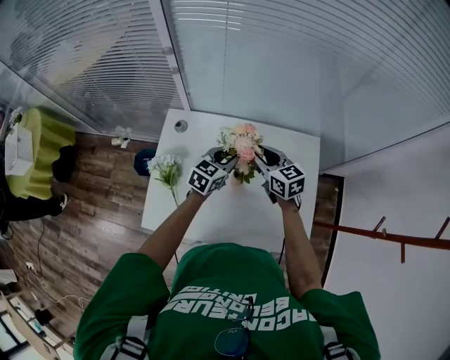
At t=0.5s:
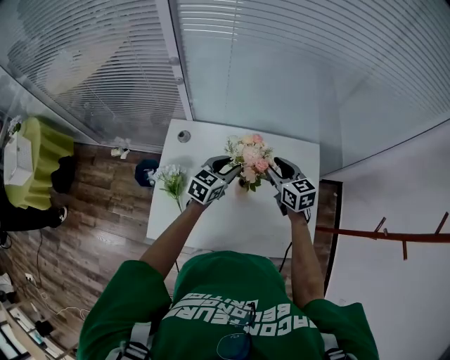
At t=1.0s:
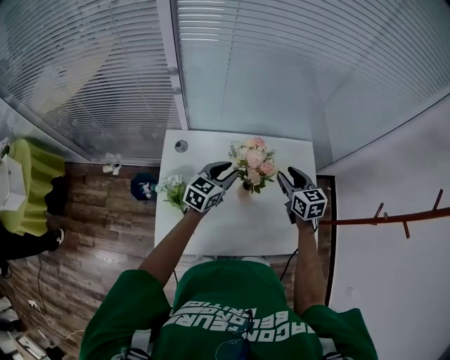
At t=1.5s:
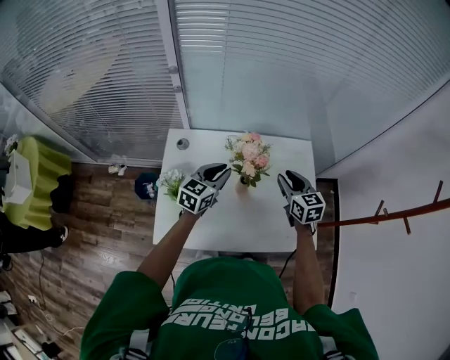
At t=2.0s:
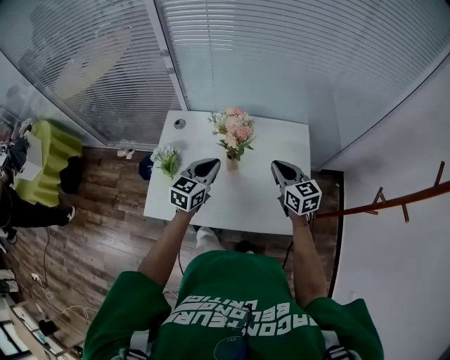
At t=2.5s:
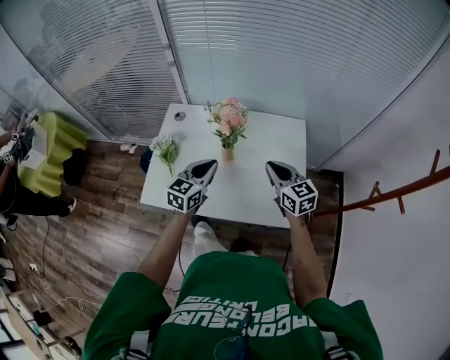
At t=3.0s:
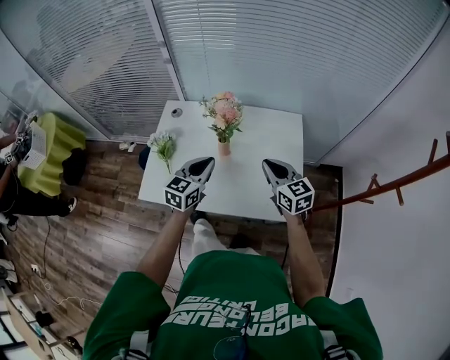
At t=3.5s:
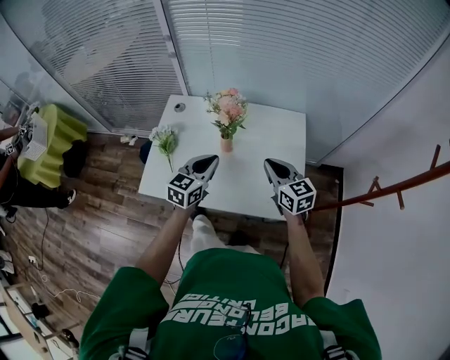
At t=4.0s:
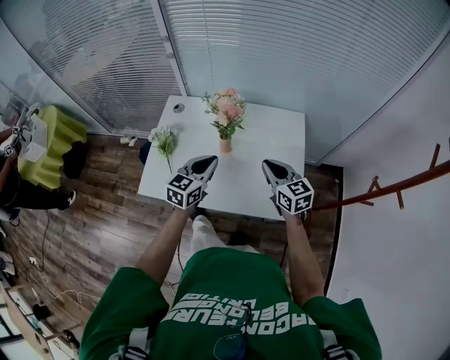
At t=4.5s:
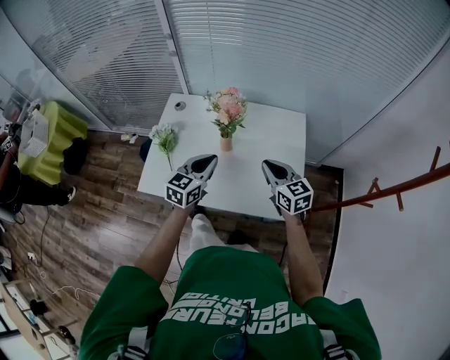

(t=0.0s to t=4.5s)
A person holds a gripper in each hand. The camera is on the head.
t=0.0s - t=2.0s: The right gripper is displaced to the right and backward by some 20 cm, and closes up, while the left gripper shifts about 15 cm backward and upward.
t=2.0s - t=4.5s: The grippers both shift backward by some 10 cm.

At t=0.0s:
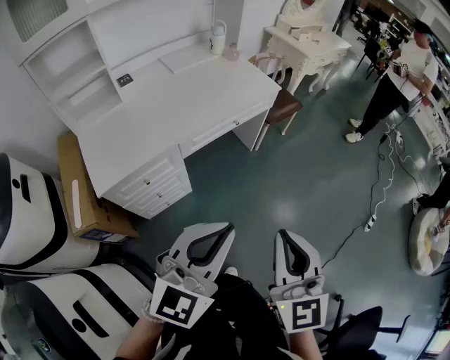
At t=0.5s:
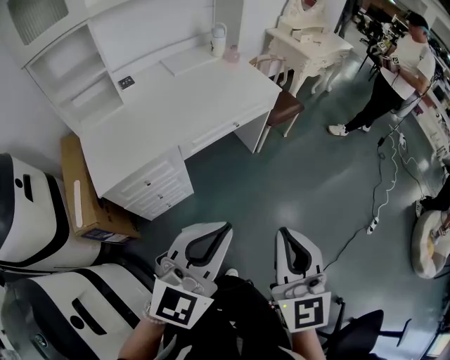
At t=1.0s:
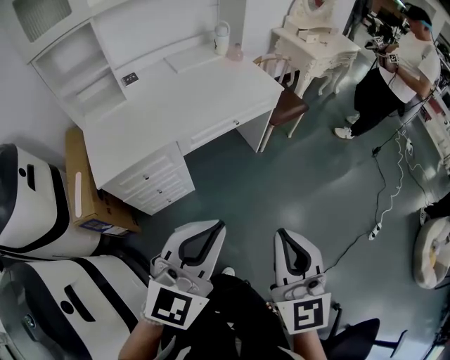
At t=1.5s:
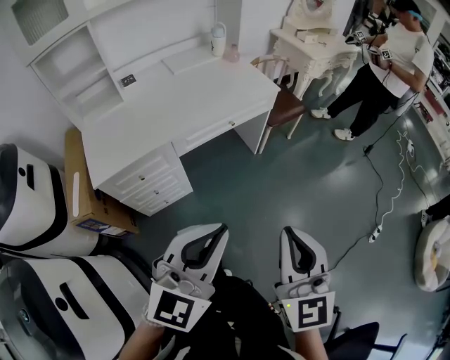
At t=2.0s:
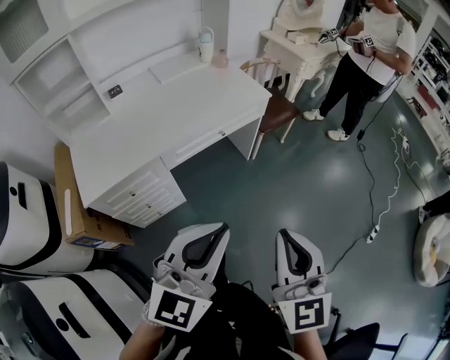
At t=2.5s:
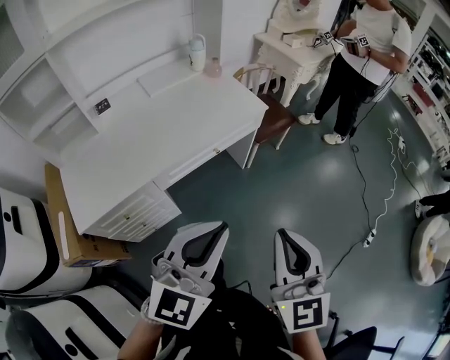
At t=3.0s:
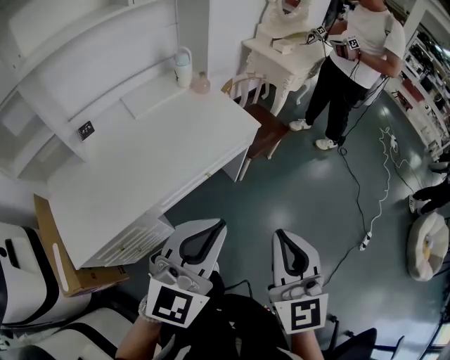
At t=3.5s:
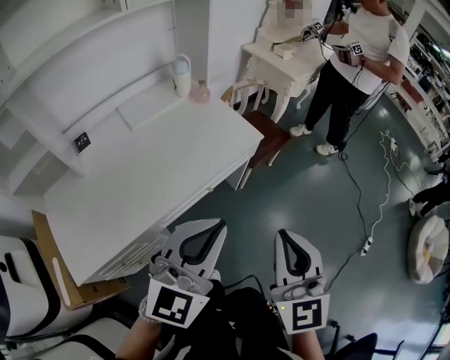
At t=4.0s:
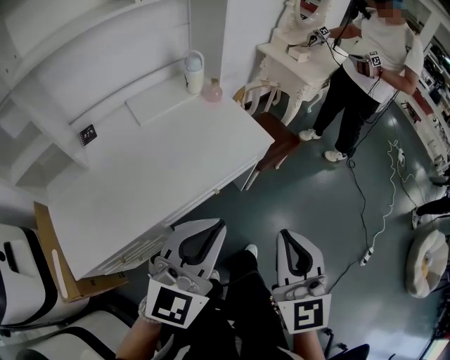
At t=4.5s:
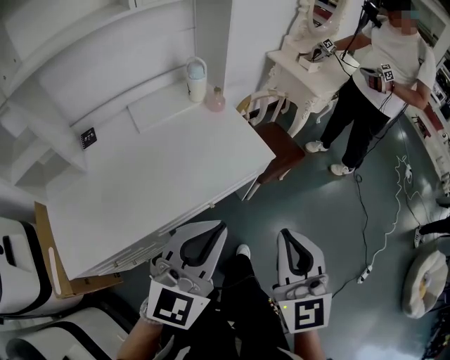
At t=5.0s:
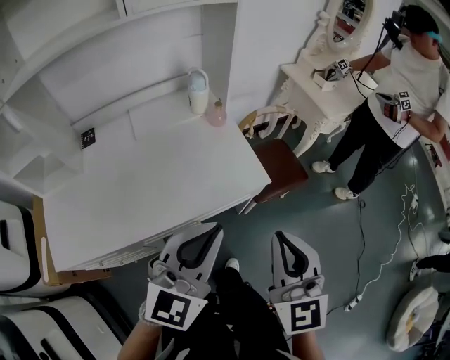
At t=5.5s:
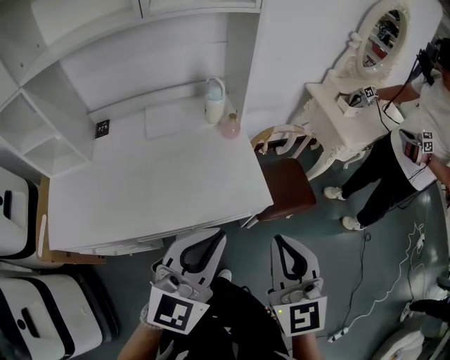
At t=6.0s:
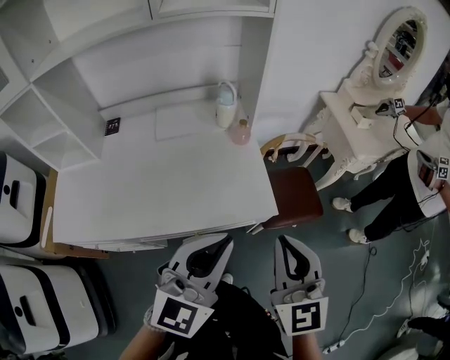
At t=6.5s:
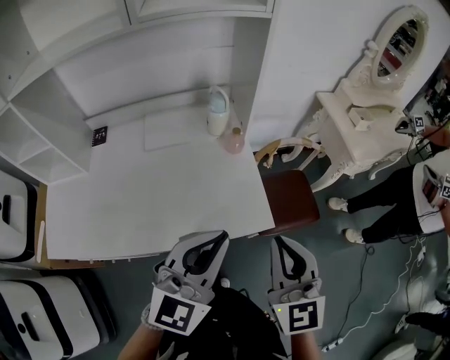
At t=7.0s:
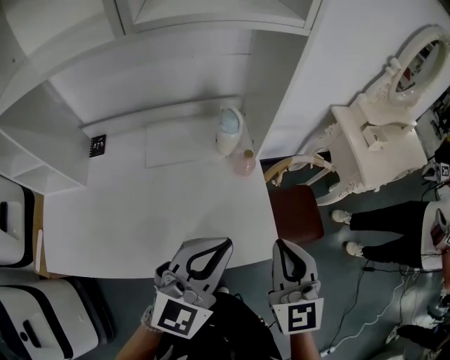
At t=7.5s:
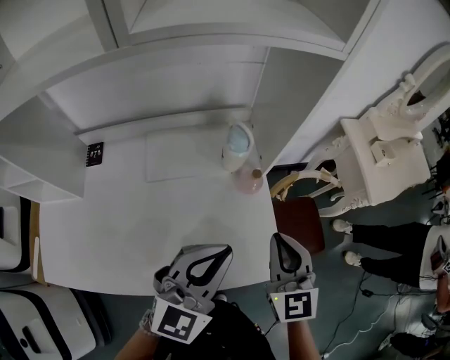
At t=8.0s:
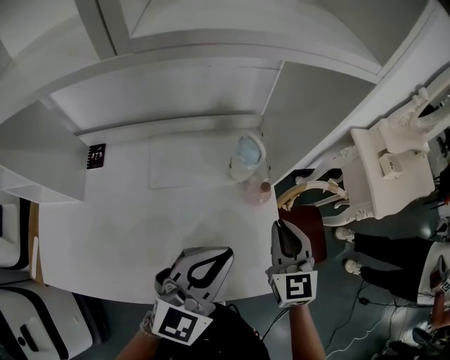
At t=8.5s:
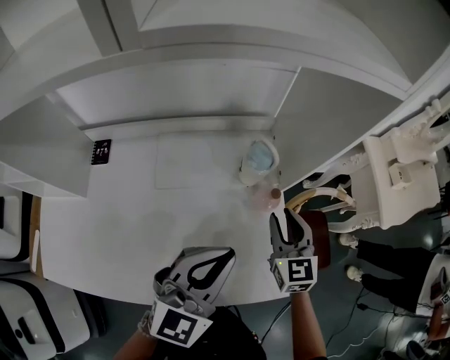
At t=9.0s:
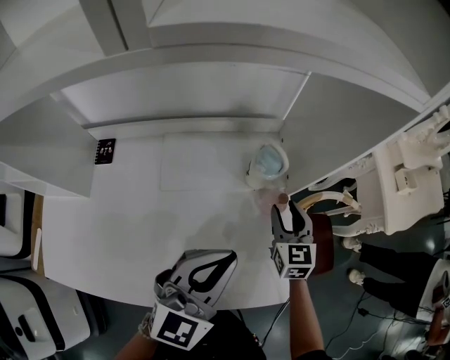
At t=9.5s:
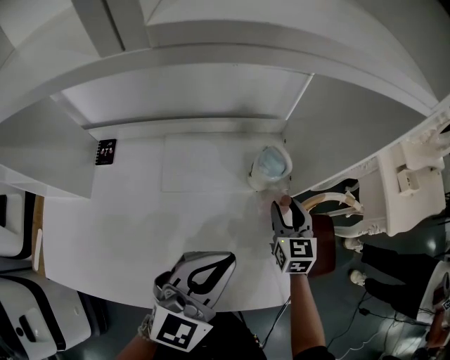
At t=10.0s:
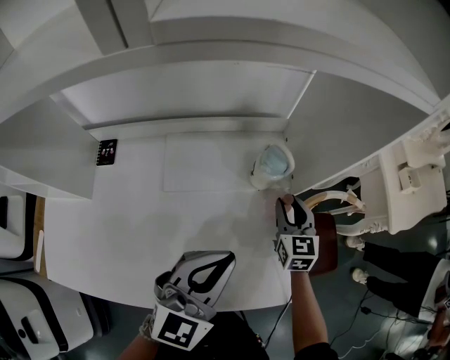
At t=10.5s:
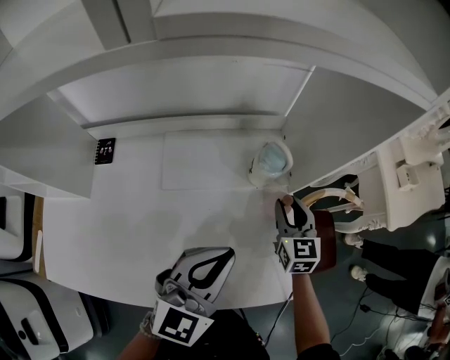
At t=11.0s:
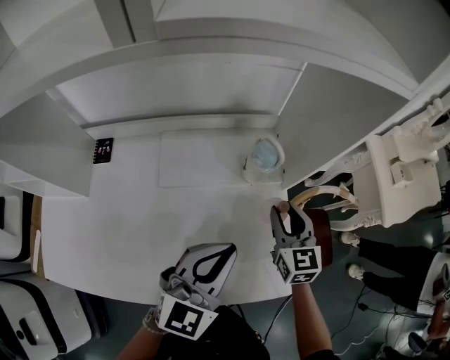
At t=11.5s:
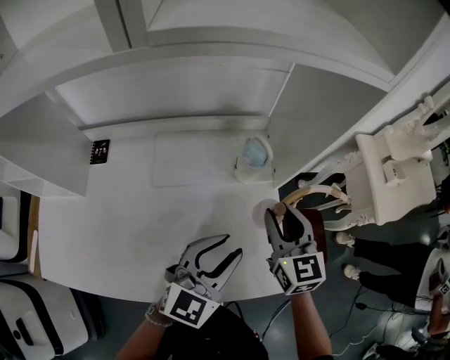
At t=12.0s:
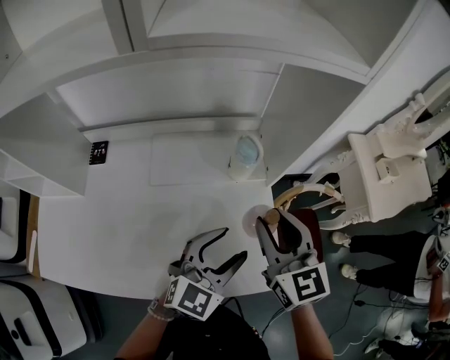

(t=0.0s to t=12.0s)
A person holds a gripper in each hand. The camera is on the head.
t=0.0s - t=2.0s: Both grippers move to the right and forward, approximately 10 cm.
t=2.0s - t=4.0s: The grippers both shift forward by roughly 30 cm.
t=4.0s - t=6.0s: The right gripper ends up some 30 cm from where it was, and rotates about 30 degrees; the left gripper shifts by approximately 25 cm, and rotates approximately 30 degrees.
t=6.0s - t=8.0s: The grippers both shift forward by roughly 30 cm.
t=8.0s - t=10.0s: The right gripper moves forward and downward, about 15 cm, and opens.
t=10.0s - t=12.0s: The left gripper moves to the right, about 5 cm, and opens; the right gripper heads upward and backward, covering roughly 20 cm.

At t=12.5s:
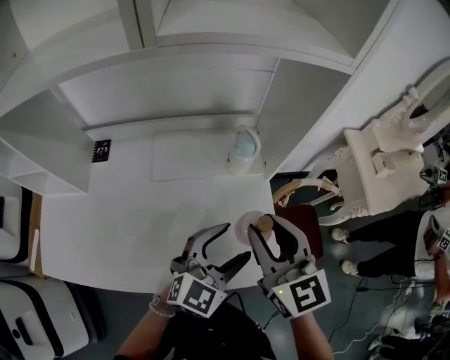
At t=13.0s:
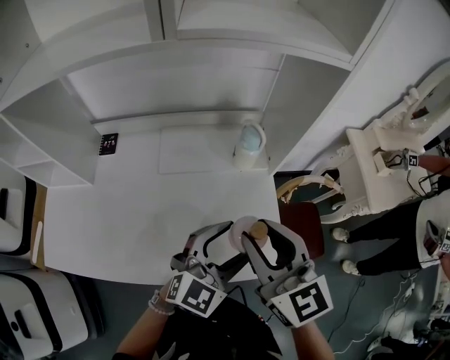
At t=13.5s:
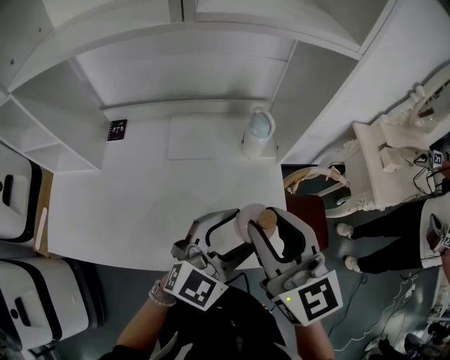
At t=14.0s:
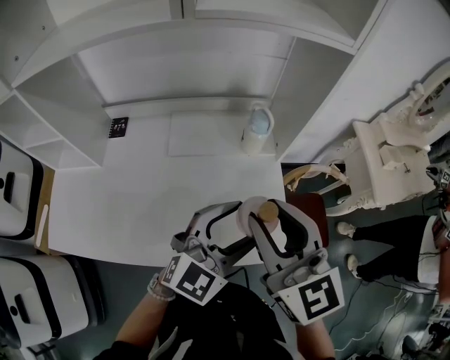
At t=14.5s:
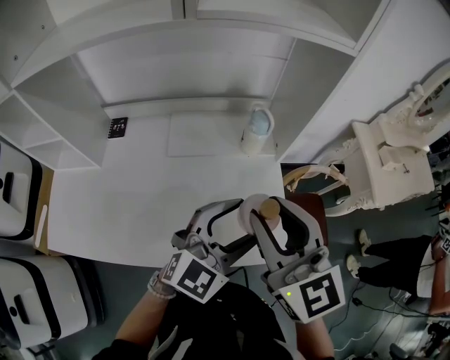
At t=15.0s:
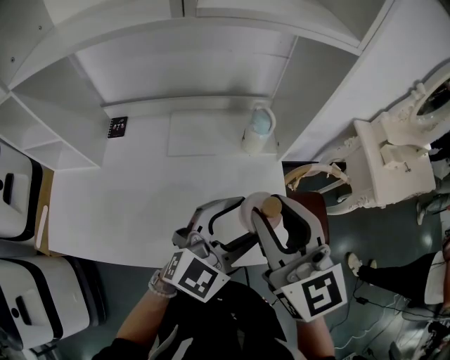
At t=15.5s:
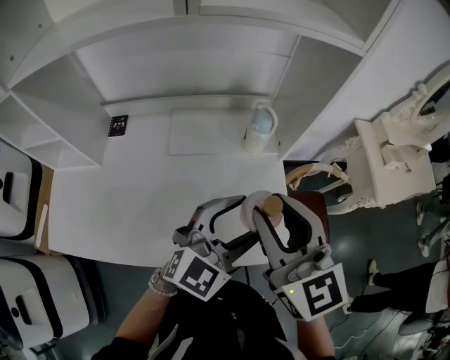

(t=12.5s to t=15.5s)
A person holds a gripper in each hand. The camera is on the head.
t=12.5s - t=14.0s: The left gripper heads upward, covering approximately 5 cm. Meanwhile the right gripper shifts some 10 cm backward and upward.
t=14.0s - t=15.5s: There are only small adjustments of the grippers.

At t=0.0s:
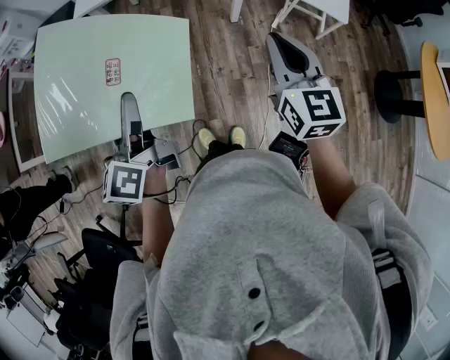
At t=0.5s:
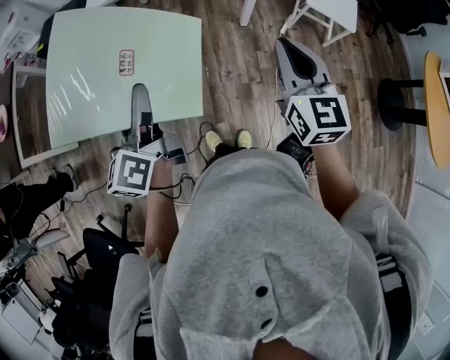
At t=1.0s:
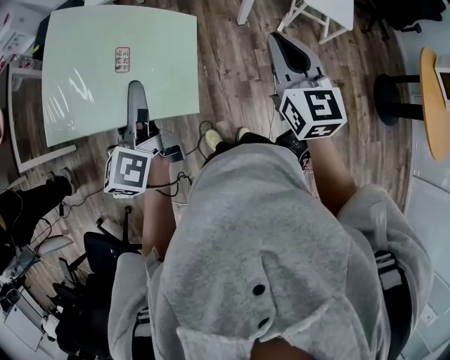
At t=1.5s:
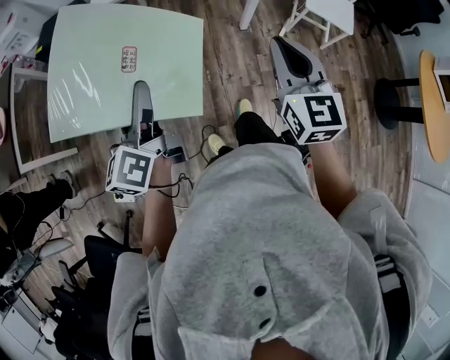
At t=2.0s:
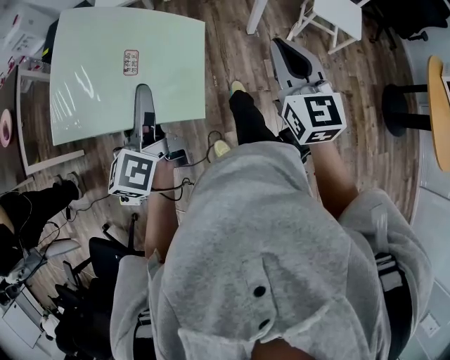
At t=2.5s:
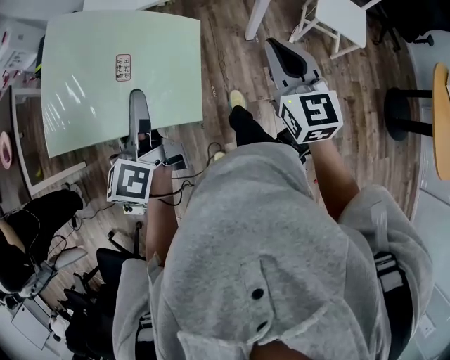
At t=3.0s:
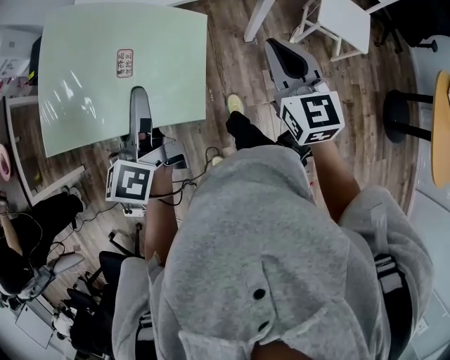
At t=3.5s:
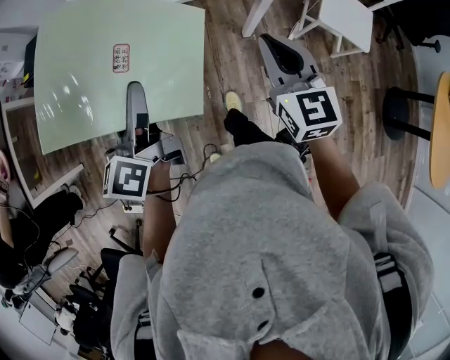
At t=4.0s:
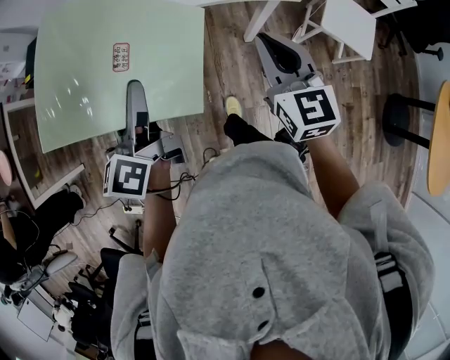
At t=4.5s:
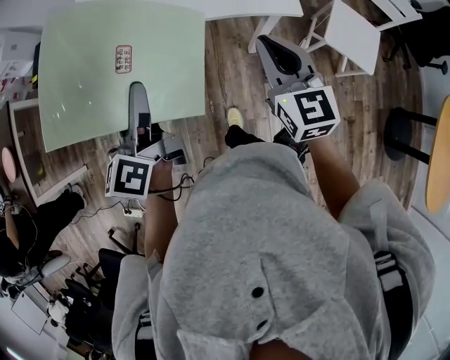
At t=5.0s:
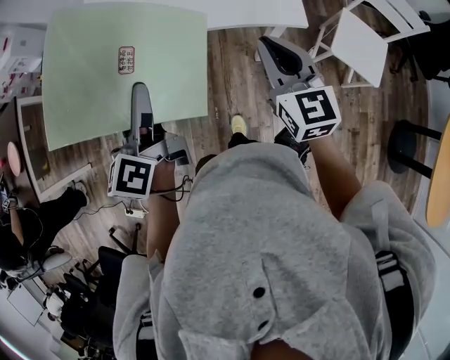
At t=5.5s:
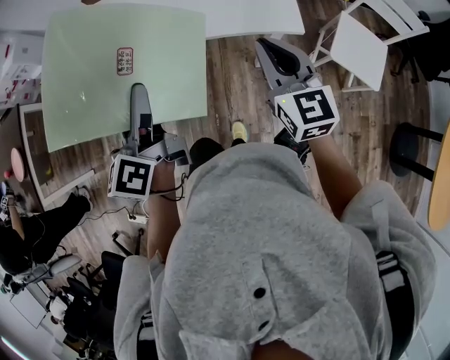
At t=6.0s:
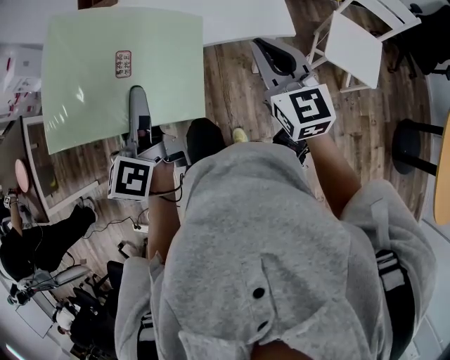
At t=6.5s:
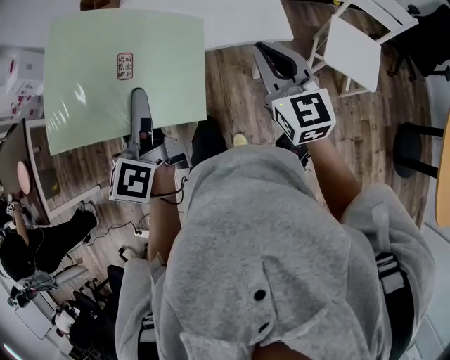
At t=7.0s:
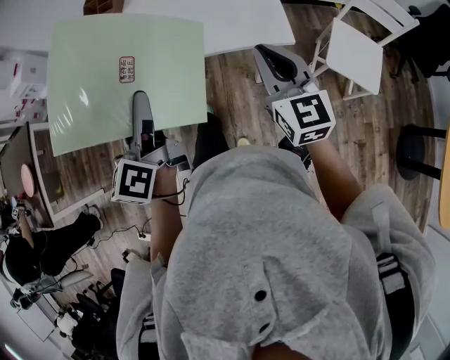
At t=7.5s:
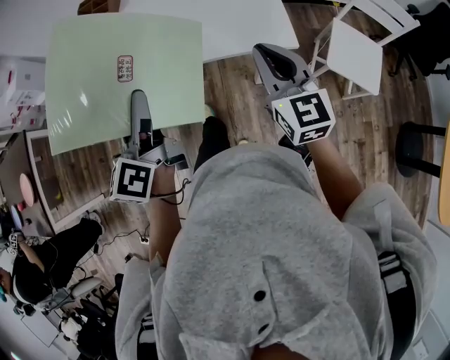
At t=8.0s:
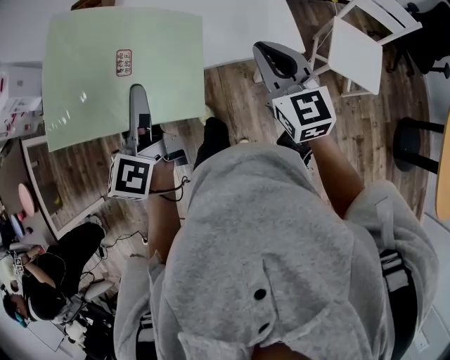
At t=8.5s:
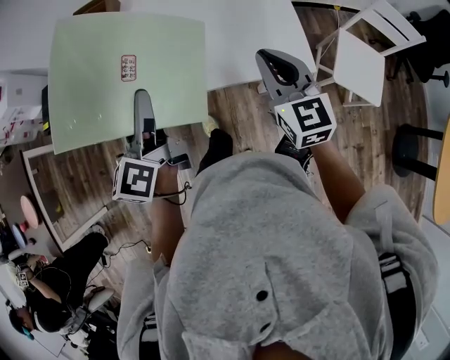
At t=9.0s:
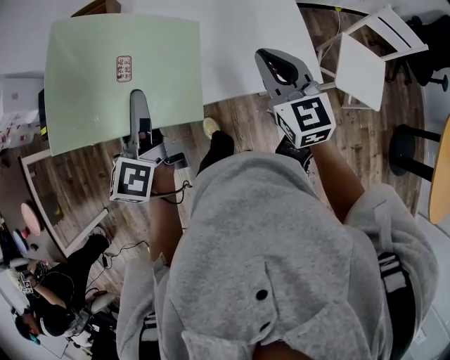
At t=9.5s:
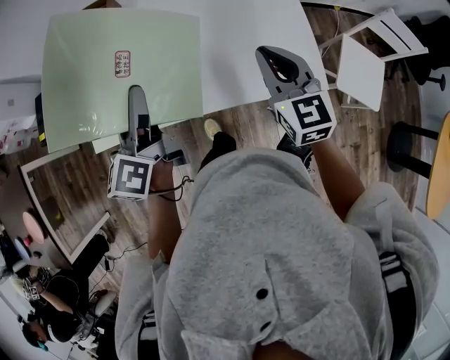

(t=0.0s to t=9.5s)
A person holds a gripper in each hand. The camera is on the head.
t=0.0s - t=2.0s: The left gripper shifts some 10 cm to the left and forward. Meanwhile the right gripper goes some 10 cm to the left.
t=2.0s - t=4.0s: The left gripper travels forward and to the right by some 30 cm; the right gripper is displaced forward by some 30 cm.
t=4.0s - t=5.5s: Both grippers travel together forward and to the right, some 10 cm.
t=5.5s - t=7.5s: There are only small adjustments of the grippers.
t=7.5s - t=9.5s: The two grippers go about 25 cm forward.
